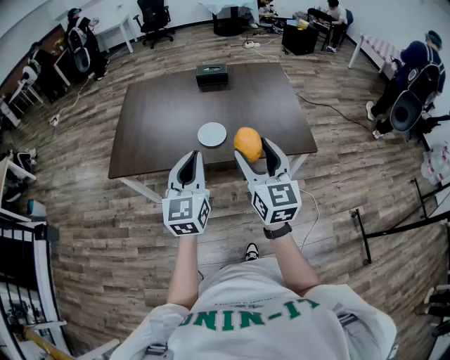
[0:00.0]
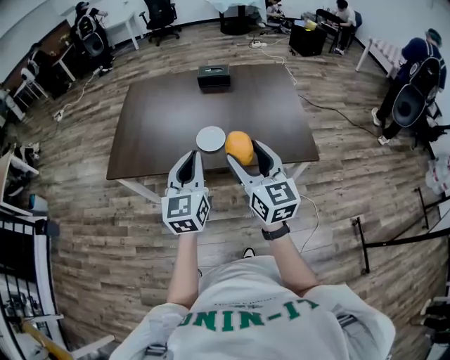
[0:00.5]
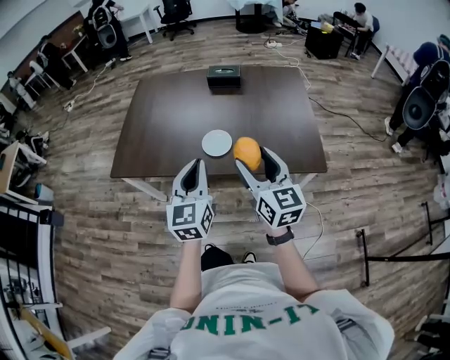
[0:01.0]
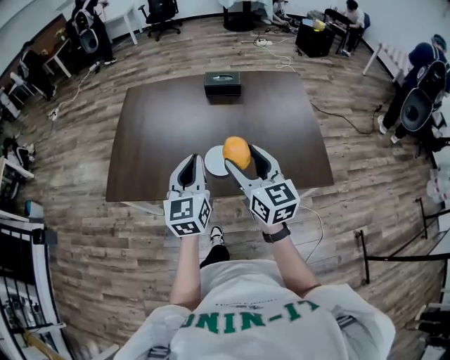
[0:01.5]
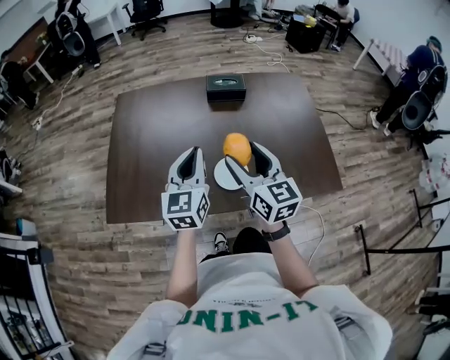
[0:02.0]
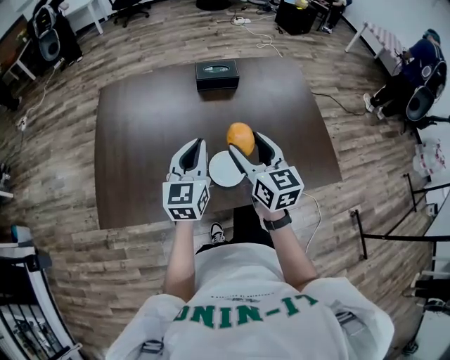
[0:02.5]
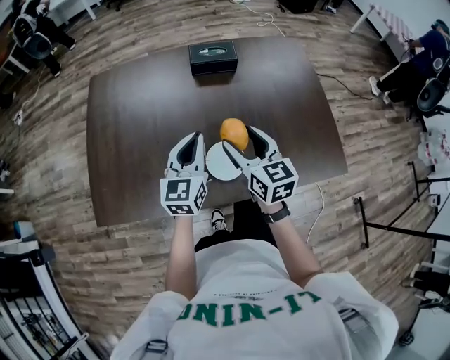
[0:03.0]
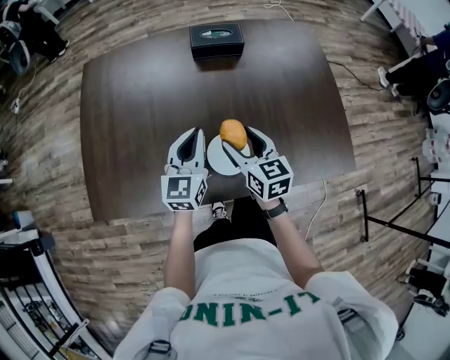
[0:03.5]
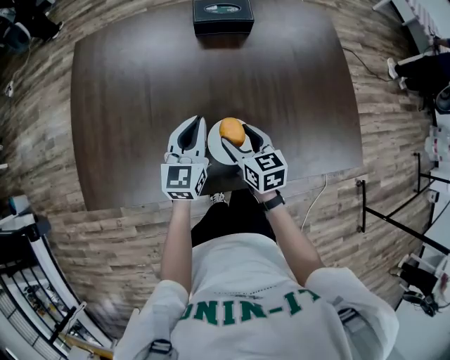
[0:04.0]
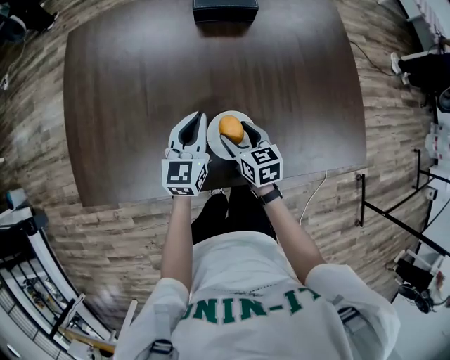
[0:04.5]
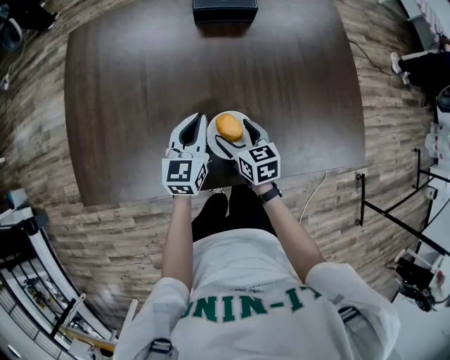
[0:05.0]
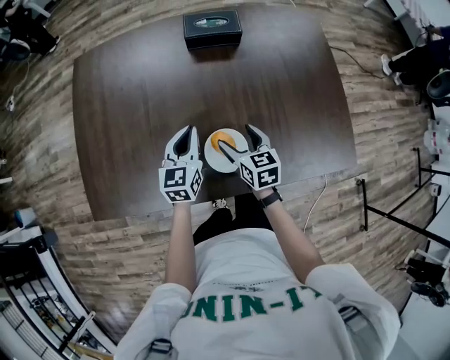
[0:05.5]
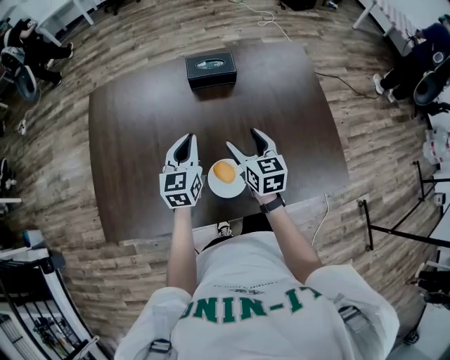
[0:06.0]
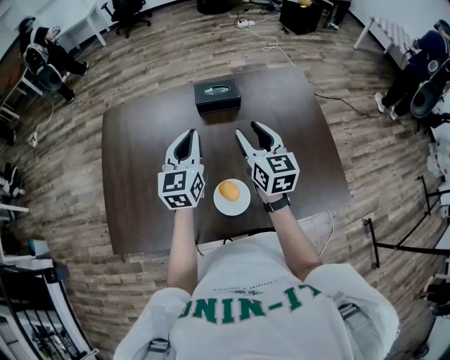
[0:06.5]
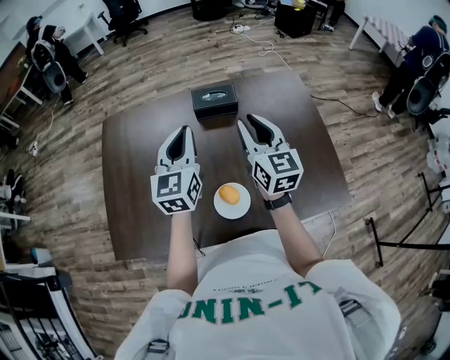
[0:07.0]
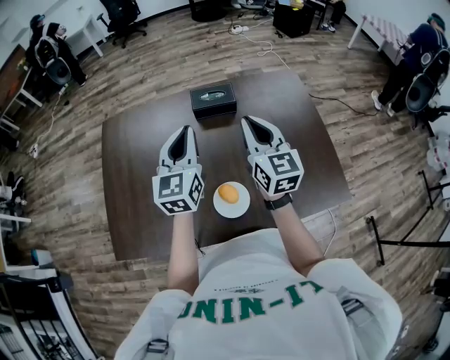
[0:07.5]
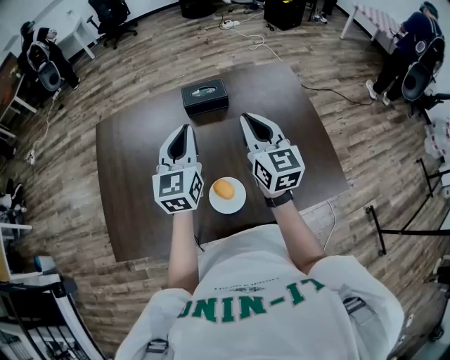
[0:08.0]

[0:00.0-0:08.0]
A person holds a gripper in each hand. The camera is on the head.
0:00.0 to 0:02.0: The grippers both shift forward by about 35 cm.
0:02.0 to 0:04.0: The left gripper moves downward and forward, some 25 cm; the right gripper moves downward, some 30 cm, and changes its angle by approximately 30 degrees.
0:04.0 to 0:06.0: The left gripper goes about 10 cm upward and forward. Meanwhile the right gripper travels upward, forward and to the right by approximately 15 cm.
0:06.0 to 0:08.0: Both grippers move upward, some 15 cm. The right gripper changes its angle by about 20 degrees, and closes its fingers.

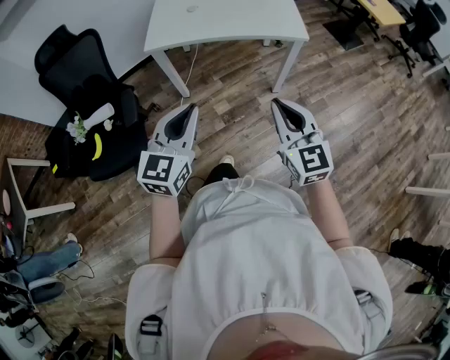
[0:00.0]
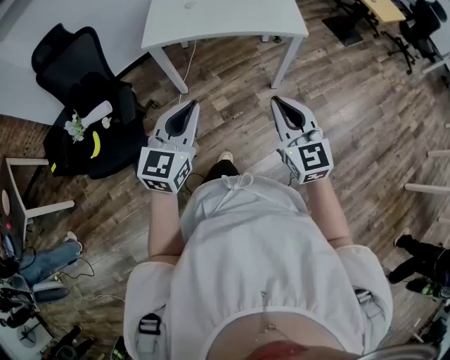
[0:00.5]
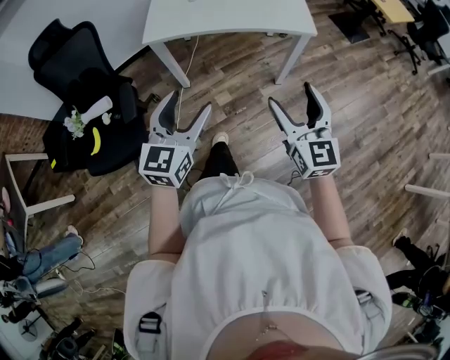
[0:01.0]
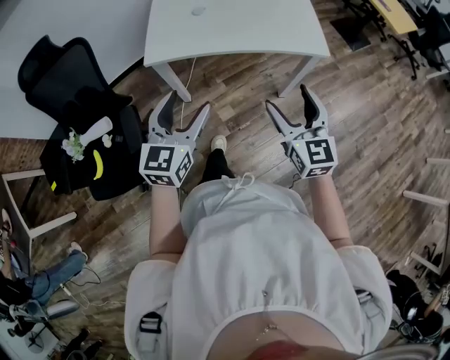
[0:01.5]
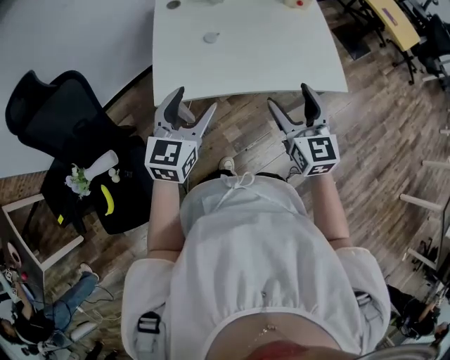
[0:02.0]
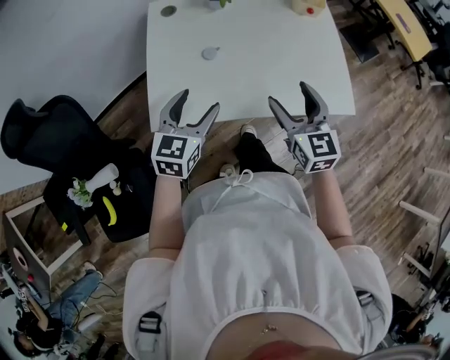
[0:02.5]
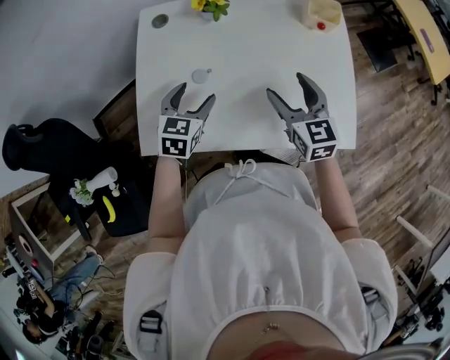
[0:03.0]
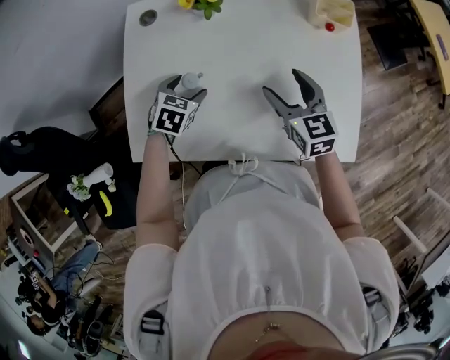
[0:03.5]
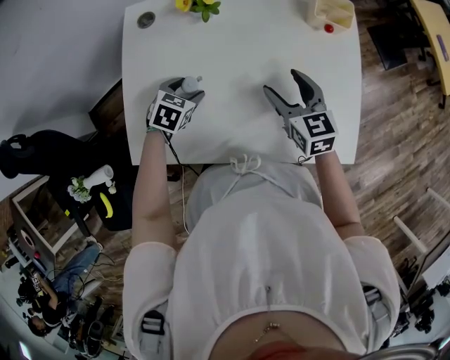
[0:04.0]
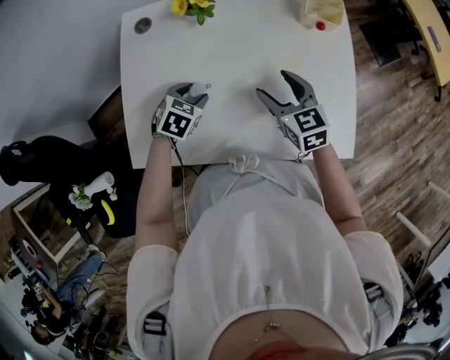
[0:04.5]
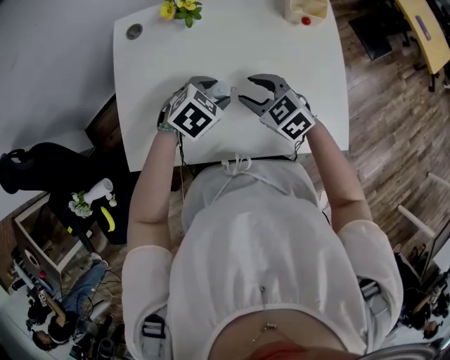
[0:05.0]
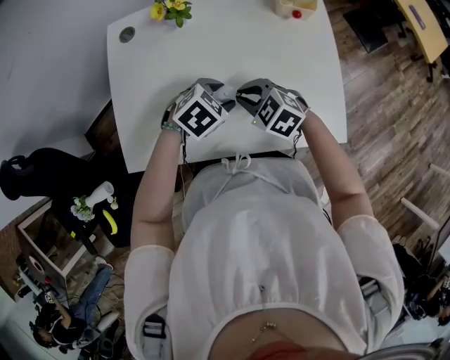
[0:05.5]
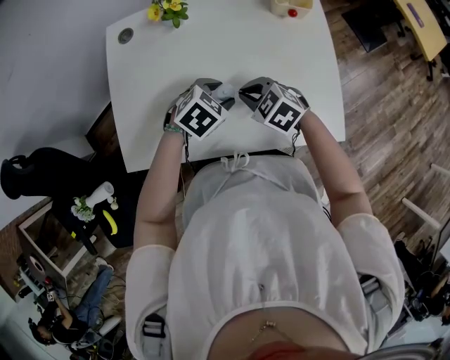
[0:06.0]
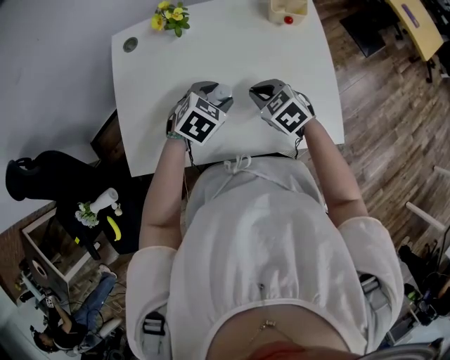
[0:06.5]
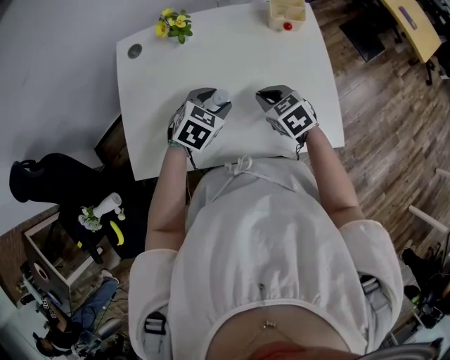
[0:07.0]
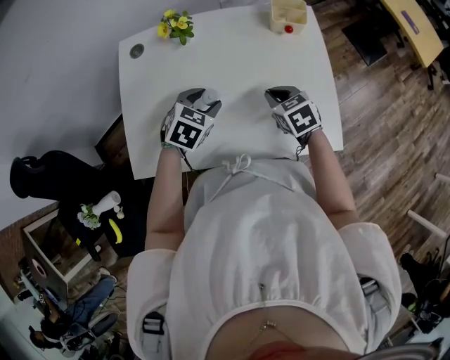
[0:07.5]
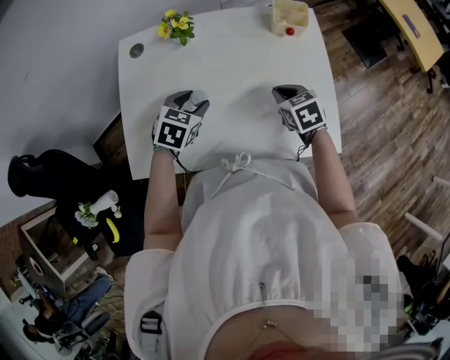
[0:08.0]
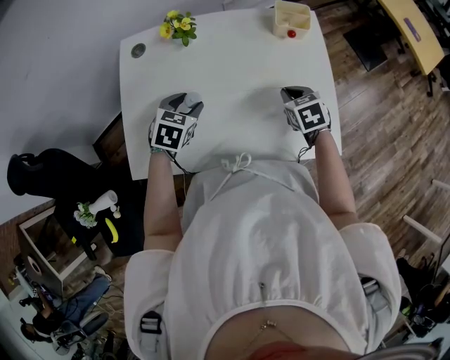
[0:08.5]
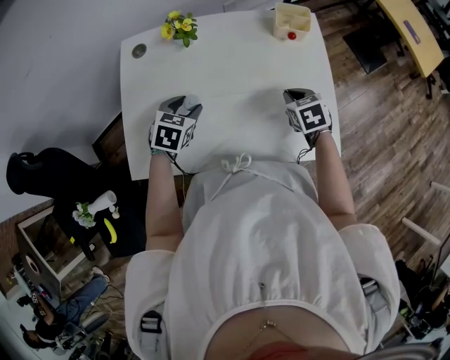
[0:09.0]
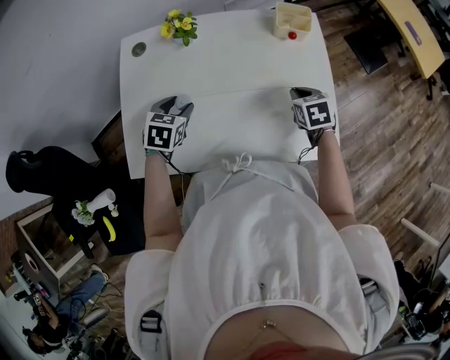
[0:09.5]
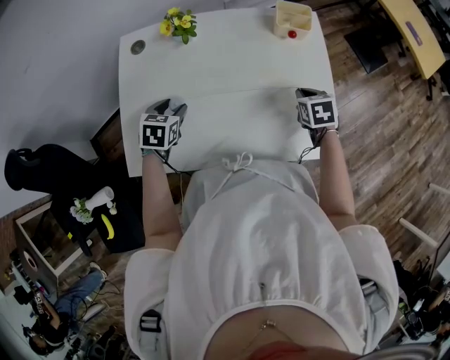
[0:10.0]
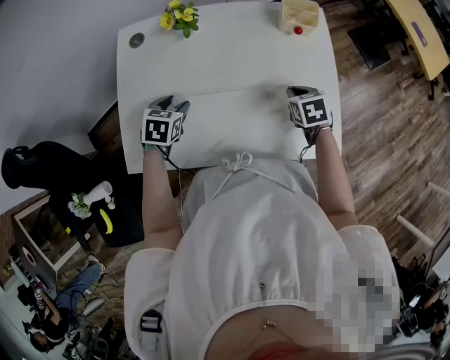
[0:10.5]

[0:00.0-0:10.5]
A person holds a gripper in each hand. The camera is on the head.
0:00.0 to 0:02.0: The two grippers travel together, forward, approximately 40 cm. The right gripper opens its fingers. Meanwhile the left gripper opens its fingers.
0:02.0 to 0:04.0: The grippers both shift forward and downward by roughly 40 cm. The right gripper changes its angle by roughly 20 degrees; the left gripper tilts its fingers roughly 50 degrees downward.
0:04.0 to 0:06.5: The right gripper shifts by about 5 cm, turns by approximately 30 degrees, and closes its fingers, while the left gripper changes place by roughly 20 cm, and swivels roughly 20 degrees.
0:06.5 to 0:08.5: The left gripper travels to the left by approximately 10 cm, while the right gripper moves to the right, some 10 cm, and rotates approximately 20 degrees.
0:08.5 to 0:10.5: The left gripper is displaced to the left by roughly 5 cm.

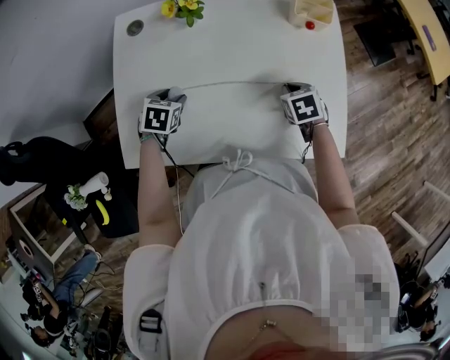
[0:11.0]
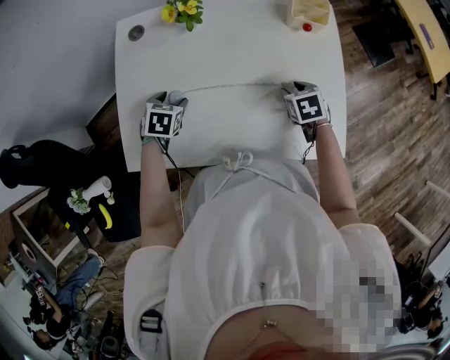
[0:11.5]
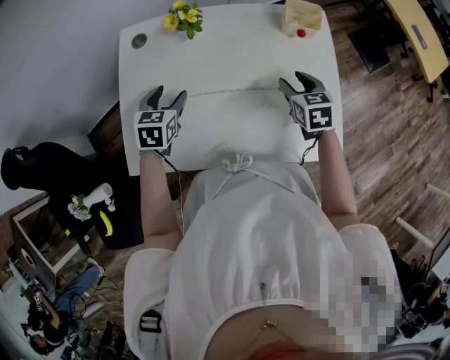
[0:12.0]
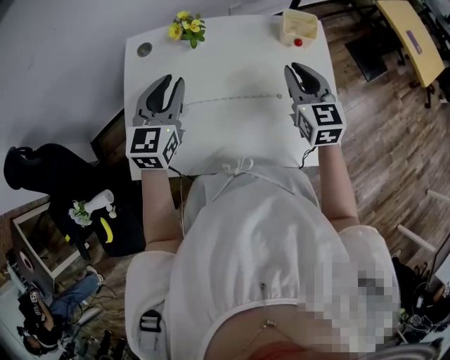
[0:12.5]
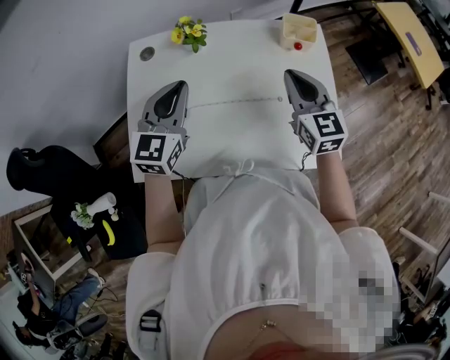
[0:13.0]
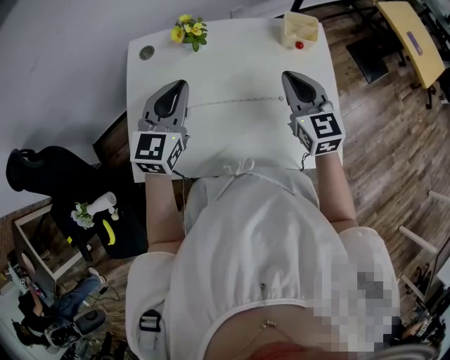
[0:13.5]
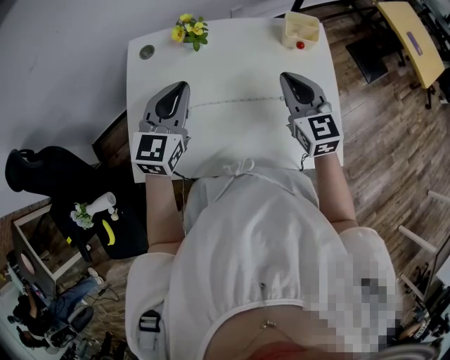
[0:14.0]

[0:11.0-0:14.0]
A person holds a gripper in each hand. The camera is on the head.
0:11.0 to 0:12.5: Both grippers travel together upward, roughly 25 cm. The right gripper tilts its fingers roughly 50 degrees upward, and opens, then closes once more, while the left gripper points its fingers some 50 degrees further upward.
0:12.5 to 0:14.0: The grippers make only small movements.

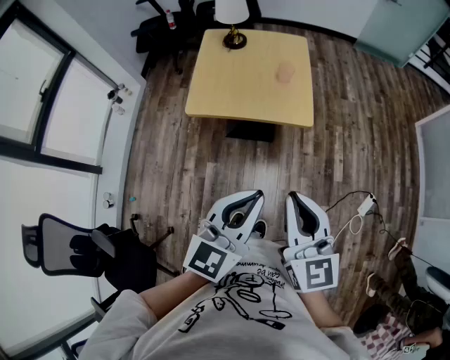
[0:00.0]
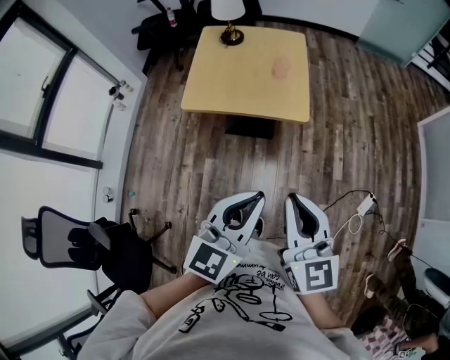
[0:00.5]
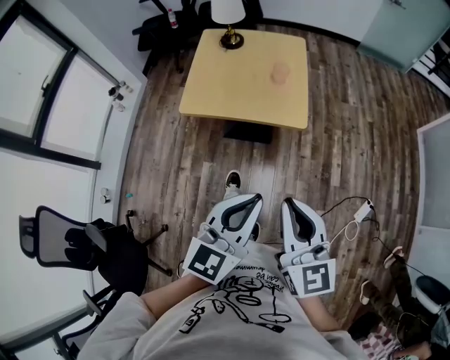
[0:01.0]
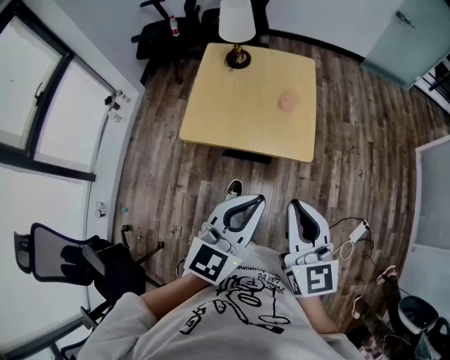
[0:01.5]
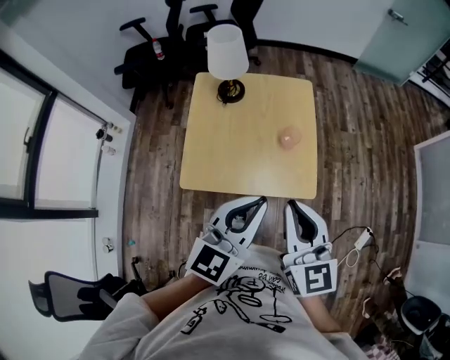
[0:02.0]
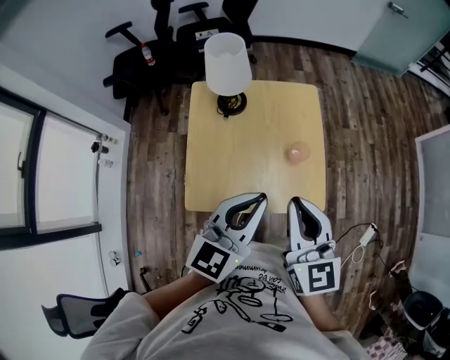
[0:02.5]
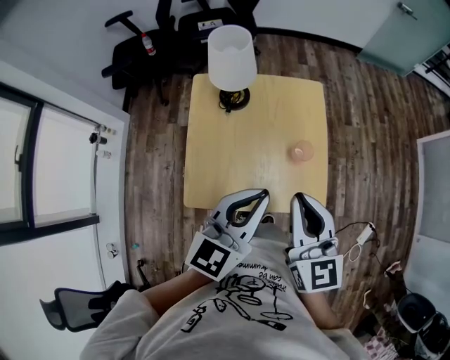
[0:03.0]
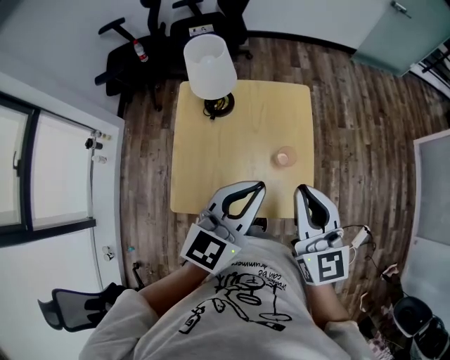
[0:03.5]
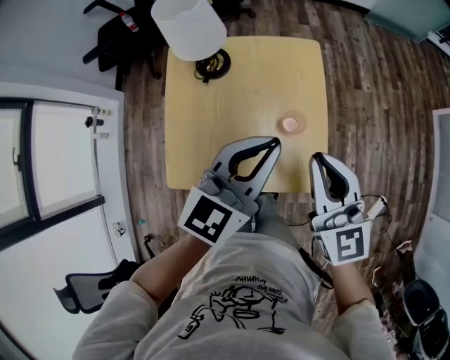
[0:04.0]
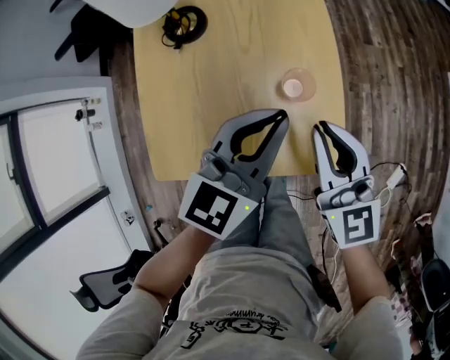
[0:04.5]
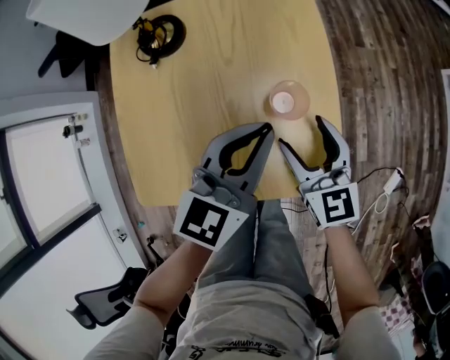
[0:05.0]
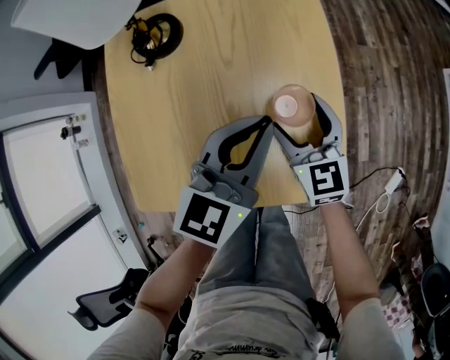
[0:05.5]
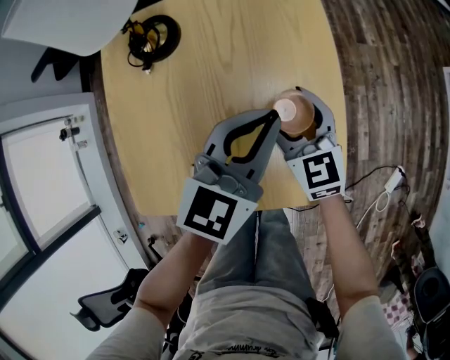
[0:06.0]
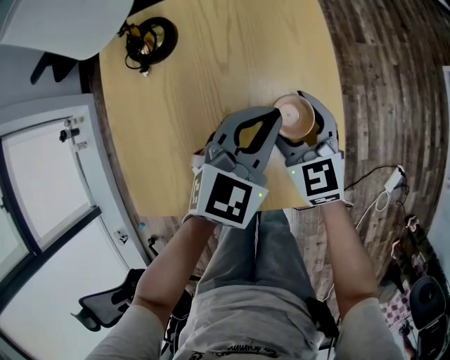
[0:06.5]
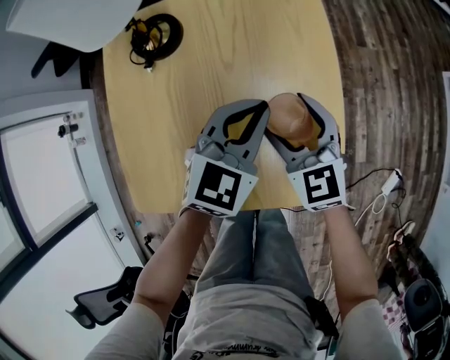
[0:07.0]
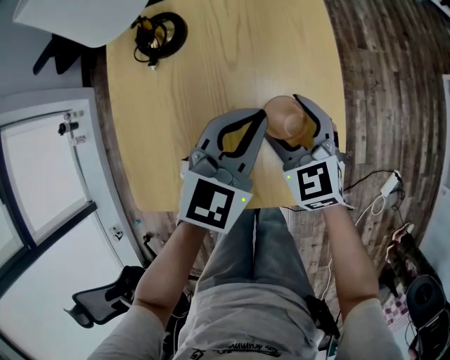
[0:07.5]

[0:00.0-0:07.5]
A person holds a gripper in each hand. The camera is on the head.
0:00.0 to 0:02.0: The grippers both shift forward by approximately 30 cm.
0:02.0 to 0:04.0: Both grippers travel together forward, about 20 cm.
0:04.0 to 0:05.5: Both grippers travel together downward, some 25 cm. The right gripper opens.
